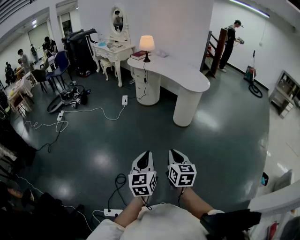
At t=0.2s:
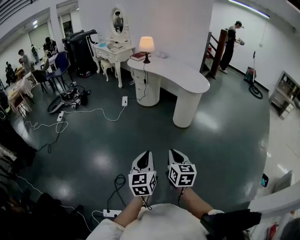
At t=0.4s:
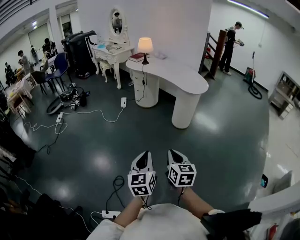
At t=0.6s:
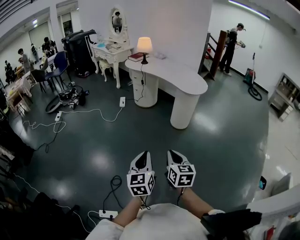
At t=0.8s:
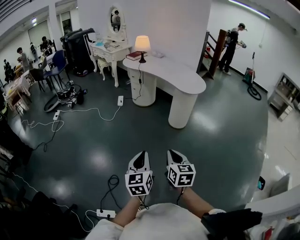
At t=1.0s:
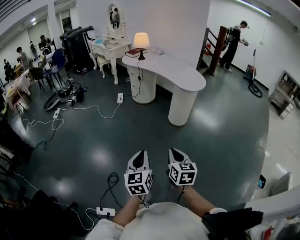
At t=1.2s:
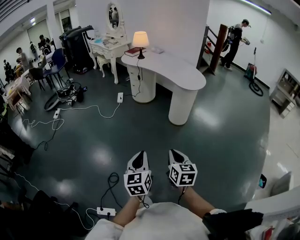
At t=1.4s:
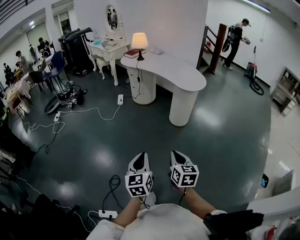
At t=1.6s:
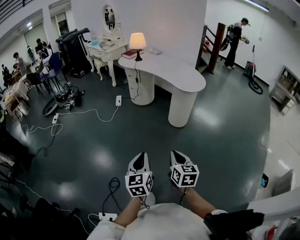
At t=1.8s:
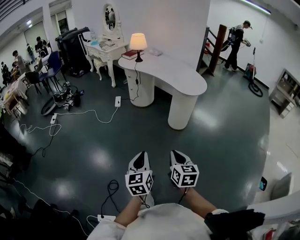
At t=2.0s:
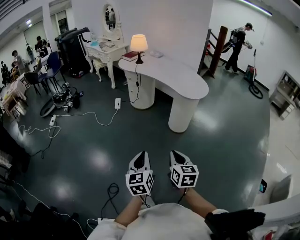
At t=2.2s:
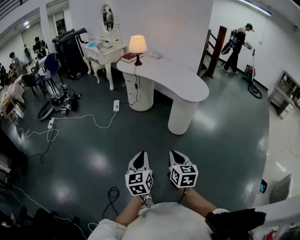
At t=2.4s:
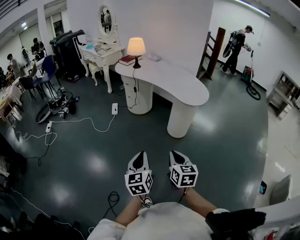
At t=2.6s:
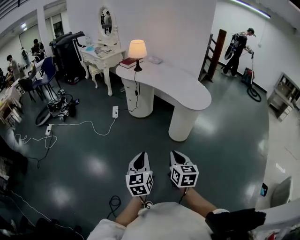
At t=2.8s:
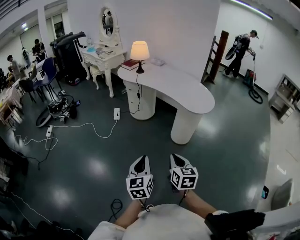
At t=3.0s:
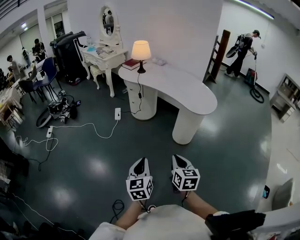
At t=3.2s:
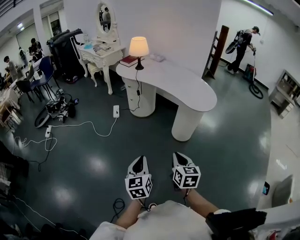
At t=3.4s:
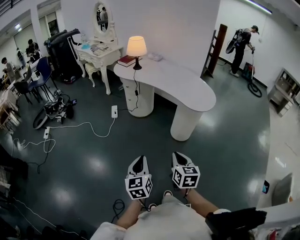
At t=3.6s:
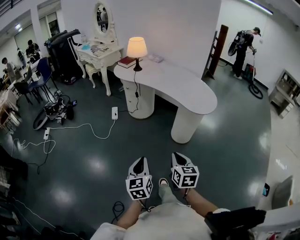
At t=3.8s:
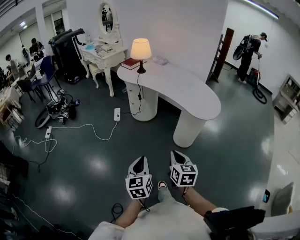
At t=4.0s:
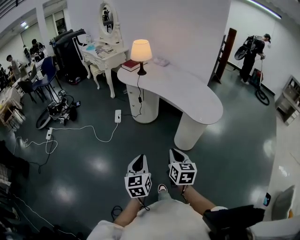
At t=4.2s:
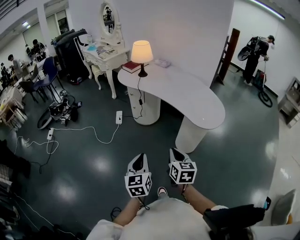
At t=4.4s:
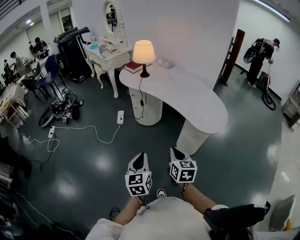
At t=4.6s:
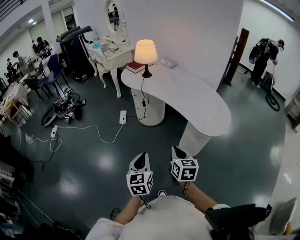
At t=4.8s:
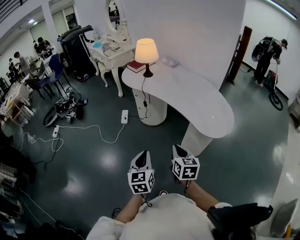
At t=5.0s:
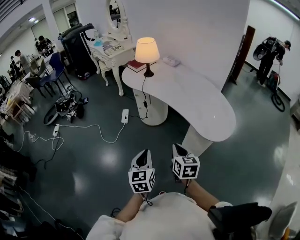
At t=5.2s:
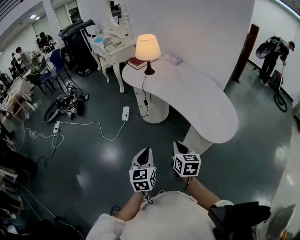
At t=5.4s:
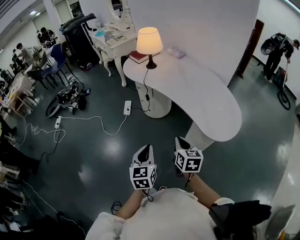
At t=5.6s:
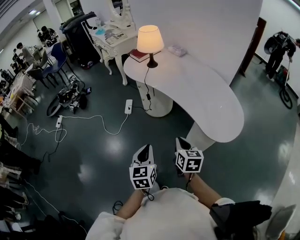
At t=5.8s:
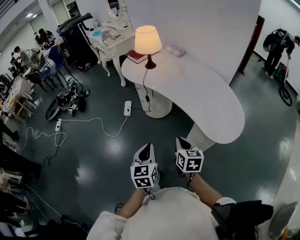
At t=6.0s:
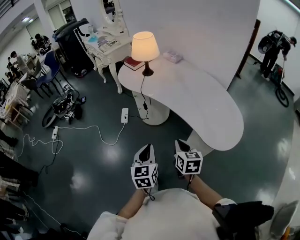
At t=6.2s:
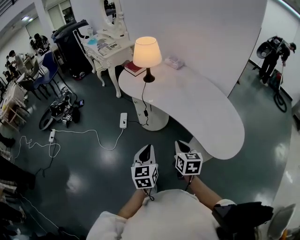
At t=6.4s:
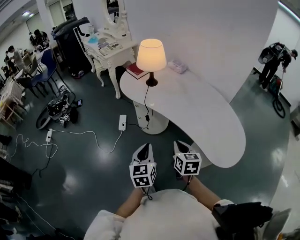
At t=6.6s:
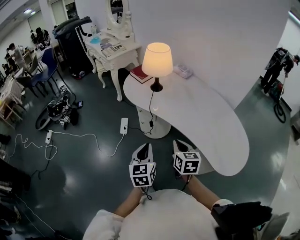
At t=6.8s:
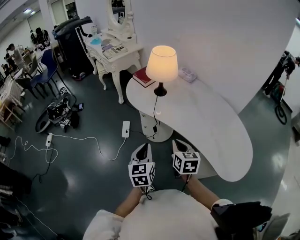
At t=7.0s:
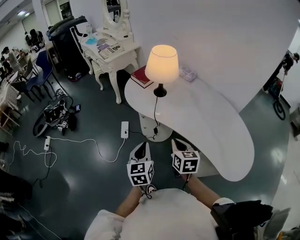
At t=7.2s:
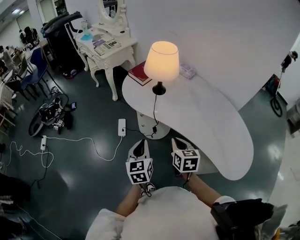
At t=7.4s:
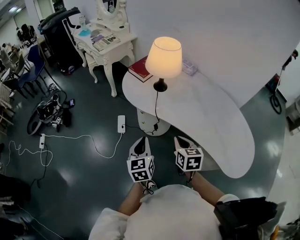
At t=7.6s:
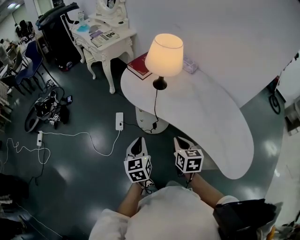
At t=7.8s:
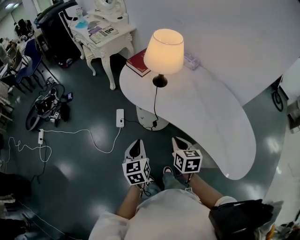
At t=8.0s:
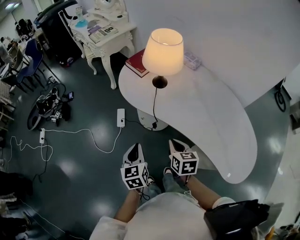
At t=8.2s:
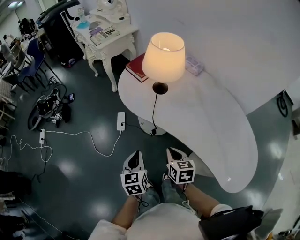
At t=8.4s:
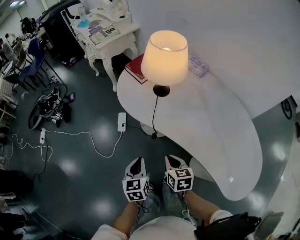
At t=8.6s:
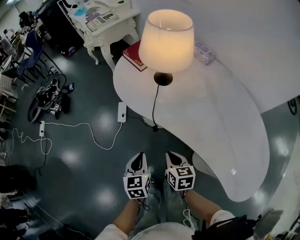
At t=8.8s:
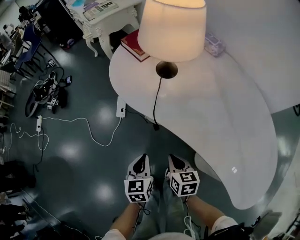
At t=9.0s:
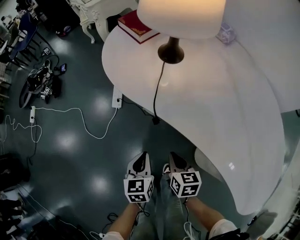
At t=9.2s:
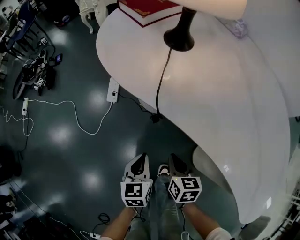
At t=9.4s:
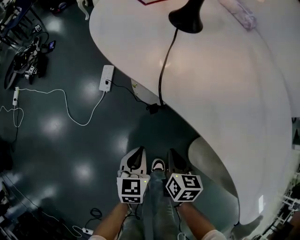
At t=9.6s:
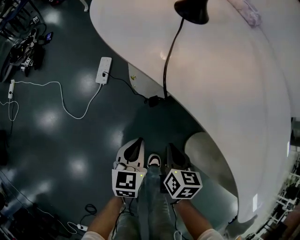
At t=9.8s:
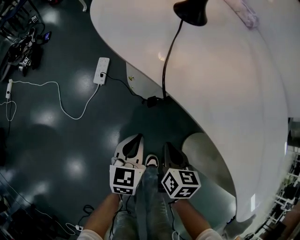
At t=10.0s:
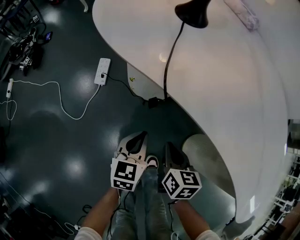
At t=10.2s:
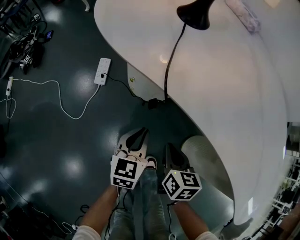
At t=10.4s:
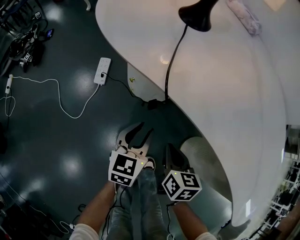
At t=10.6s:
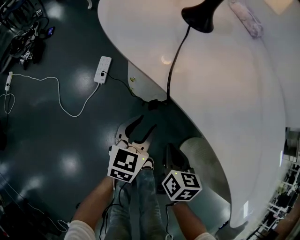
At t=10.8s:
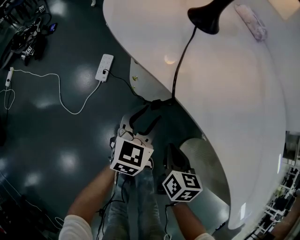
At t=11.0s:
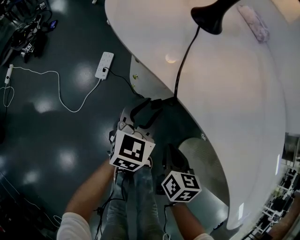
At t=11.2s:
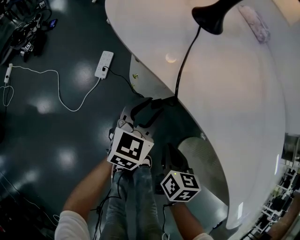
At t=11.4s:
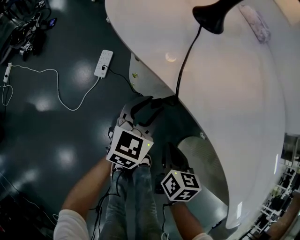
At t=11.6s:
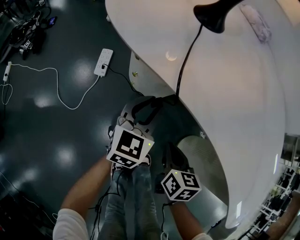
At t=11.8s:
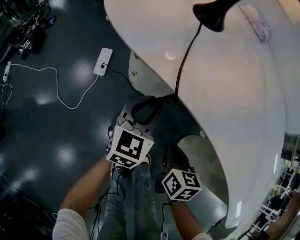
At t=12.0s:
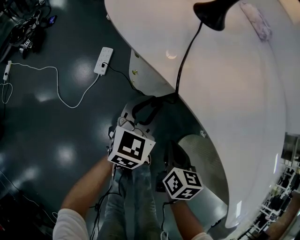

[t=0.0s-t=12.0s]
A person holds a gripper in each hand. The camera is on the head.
t=0.0s to t=1.6s: The right gripper travels to the right and forward by approximately 15 cm, while the left gripper shifts roughly 10 cm forward and to the right.
t=1.6s to t=3.0s: The two grippers go roughly 25 cm forward.
t=3.0s to t=4.4s: Both grippers move forward, about 20 cm.
t=4.4s to t=6.0s: Both grippers travel together forward, some 20 cm.
t=6.0s to t=7.6s: The grippers both shift forward and to the left by about 30 cm.
t=7.6s to t=9.0s: Both grippers travel together downward, approximately 25 cm.
t=9.0s to t=10.4s: The right gripper heads downward, covering about 5 cm. Meanwhile the left gripper is displaced downward and forward by some 10 cm, and opens.
t=10.4s to t=12.0s: The left gripper goes about 5 cm forward.

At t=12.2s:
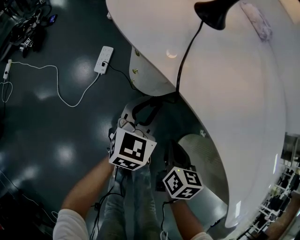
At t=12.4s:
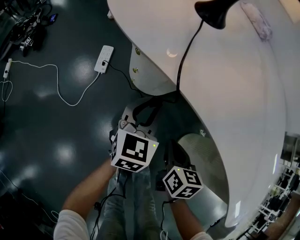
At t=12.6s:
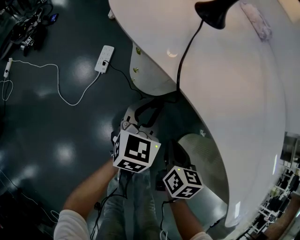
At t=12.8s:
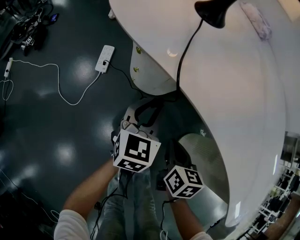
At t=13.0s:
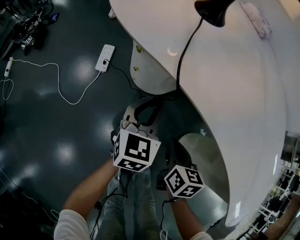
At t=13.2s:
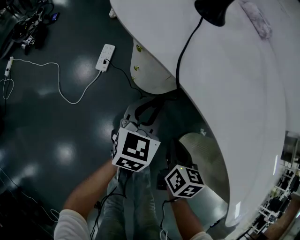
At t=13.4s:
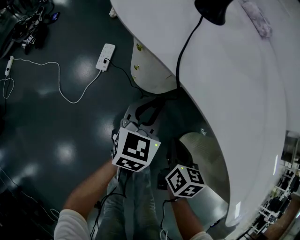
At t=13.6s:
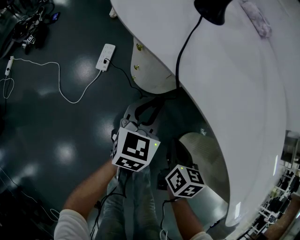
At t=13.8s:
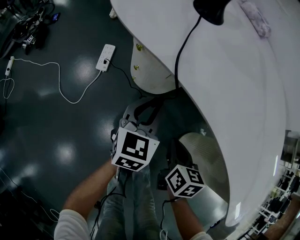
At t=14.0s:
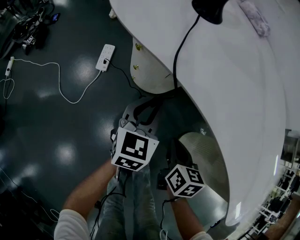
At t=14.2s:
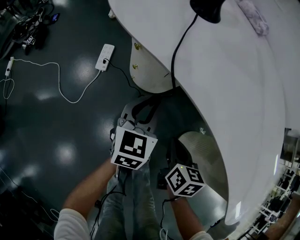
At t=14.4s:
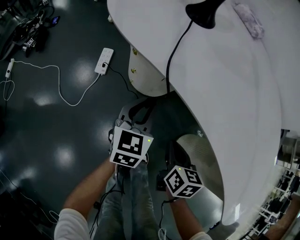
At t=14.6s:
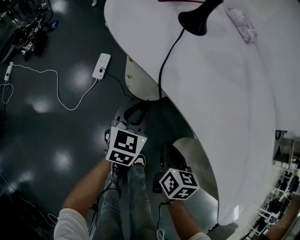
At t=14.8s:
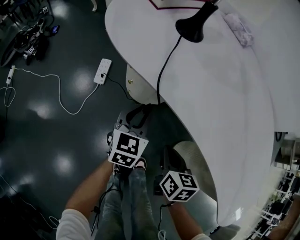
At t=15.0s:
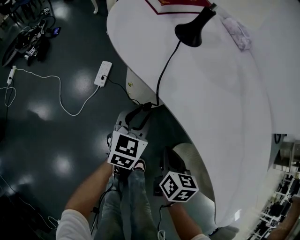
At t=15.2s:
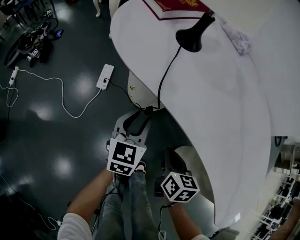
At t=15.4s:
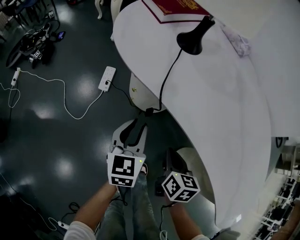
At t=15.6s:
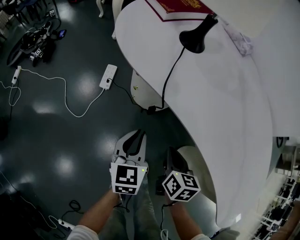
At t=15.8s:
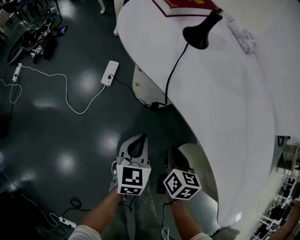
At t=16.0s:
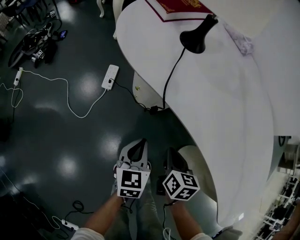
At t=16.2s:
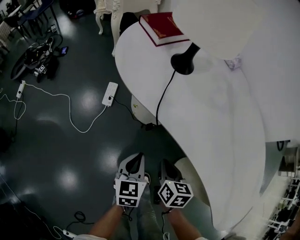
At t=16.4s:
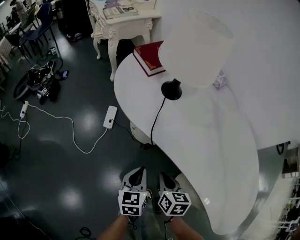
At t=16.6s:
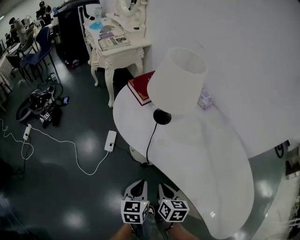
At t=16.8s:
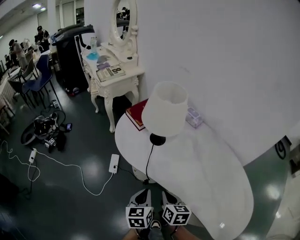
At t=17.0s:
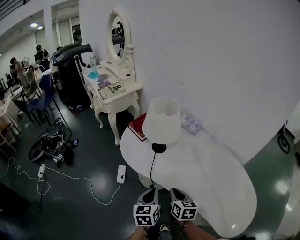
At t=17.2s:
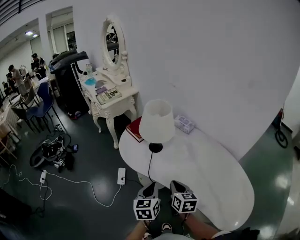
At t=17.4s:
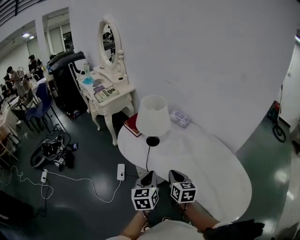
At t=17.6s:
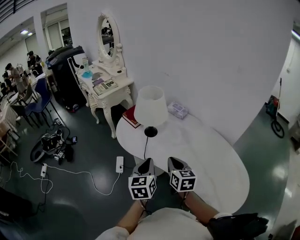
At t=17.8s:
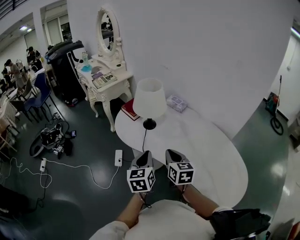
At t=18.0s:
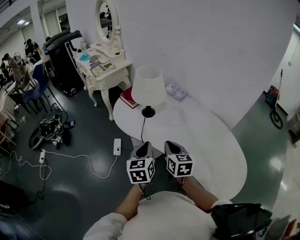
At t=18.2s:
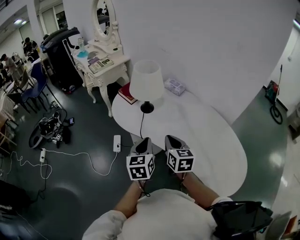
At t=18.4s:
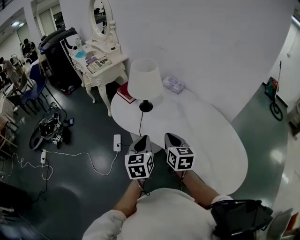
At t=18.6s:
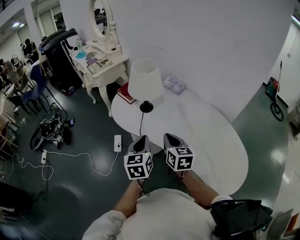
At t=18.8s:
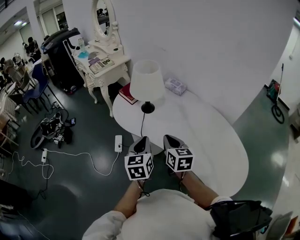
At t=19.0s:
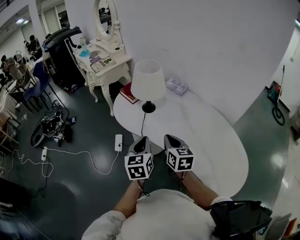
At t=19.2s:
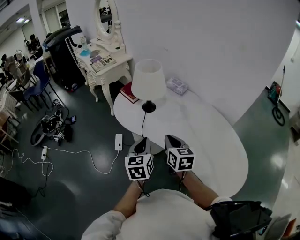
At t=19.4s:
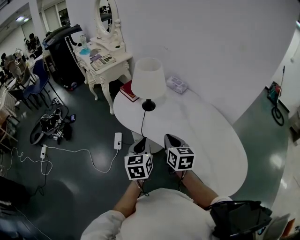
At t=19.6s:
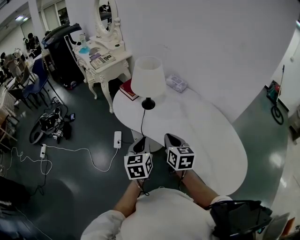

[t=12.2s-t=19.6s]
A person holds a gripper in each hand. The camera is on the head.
t=12.2s to t=13.6s: There are only small adjustments of the grippers.
t=13.6s to t=15.2s: Both grippers travel together upward, about 5 cm.
t=15.2s to t=16.6s: The left gripper goes about 15 cm upward and backward, and closes its fingers. Meanwhile the right gripper travels upward by about 10 cm.
t=16.6s to t=18.2s: The two grippers go some 25 cm upward. The right gripper turns by approximately 20 degrees.
t=18.2s to t=19.6s: The grippers make only small movements.

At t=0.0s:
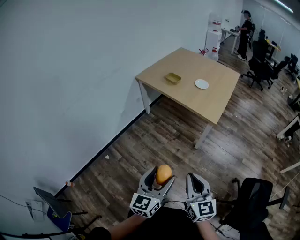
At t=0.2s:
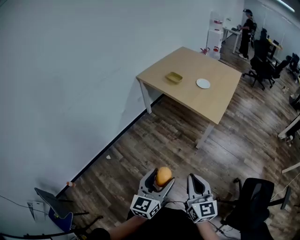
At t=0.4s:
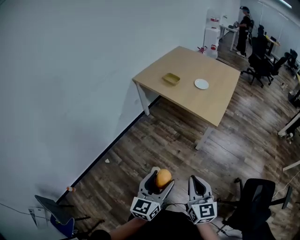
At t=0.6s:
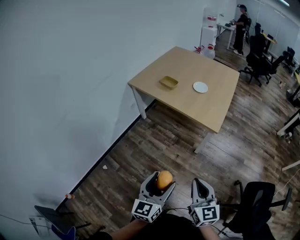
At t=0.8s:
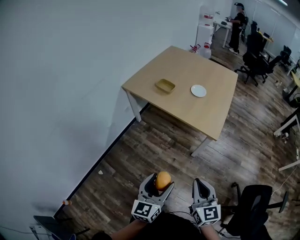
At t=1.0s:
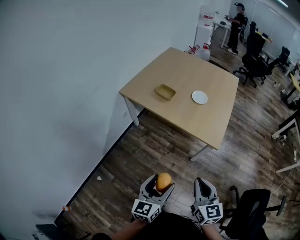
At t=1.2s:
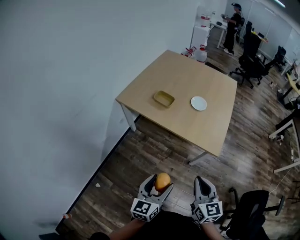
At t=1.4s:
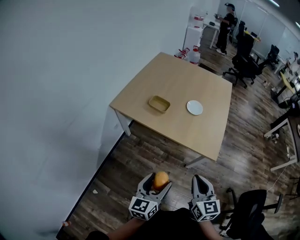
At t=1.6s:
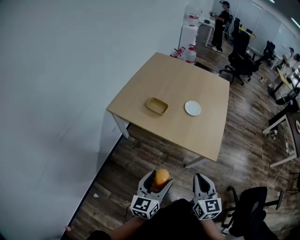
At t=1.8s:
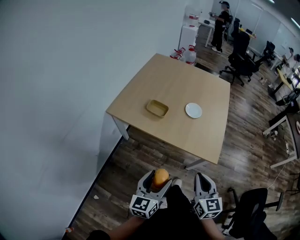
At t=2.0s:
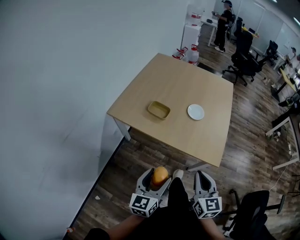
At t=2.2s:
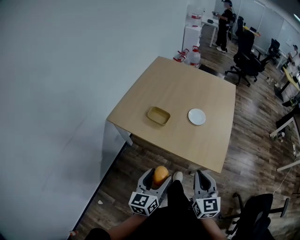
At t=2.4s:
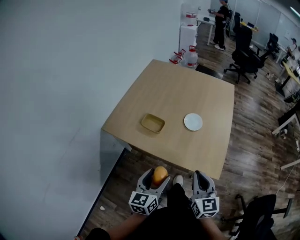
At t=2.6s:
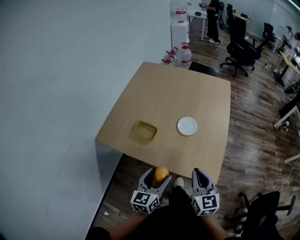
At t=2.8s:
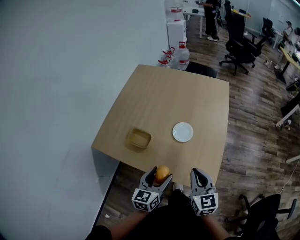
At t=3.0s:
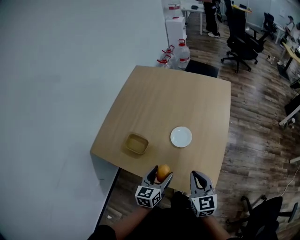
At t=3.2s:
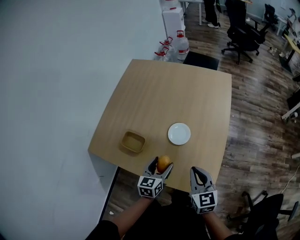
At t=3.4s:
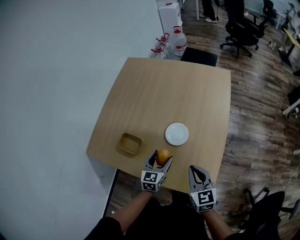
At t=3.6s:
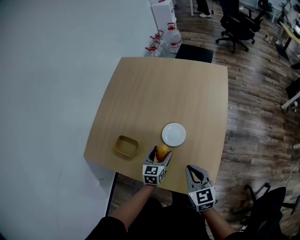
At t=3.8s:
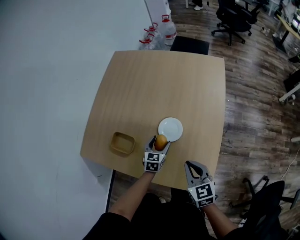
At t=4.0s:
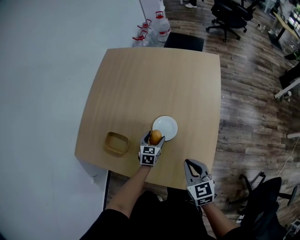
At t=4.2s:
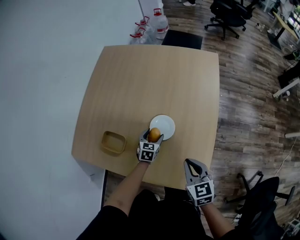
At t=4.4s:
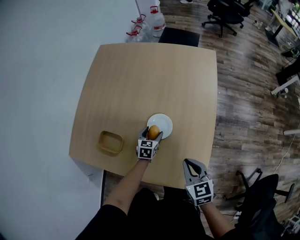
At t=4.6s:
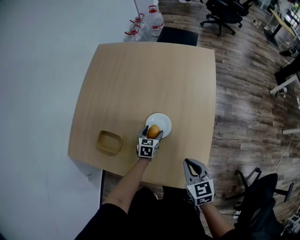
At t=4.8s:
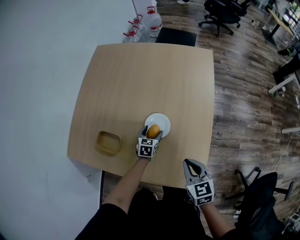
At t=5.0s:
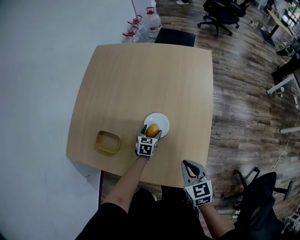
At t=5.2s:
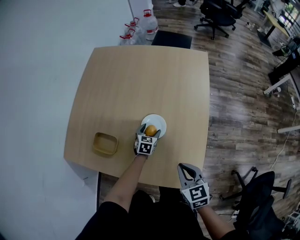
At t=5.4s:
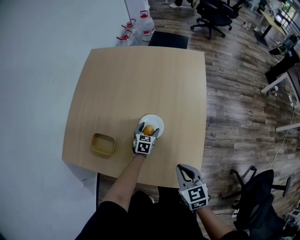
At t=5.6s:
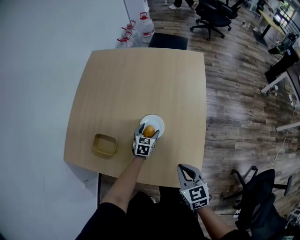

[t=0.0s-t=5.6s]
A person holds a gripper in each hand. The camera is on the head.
t=0.0s to t=1.4s: The grippers both shift forward by roughly 35 cm.
t=1.4s to t=2.8s: The two grippers go roughly 30 cm forward.
t=2.8s to t=4.2s: The right gripper is displaced forward, downward and to the right by about 15 cm. Meanwhile the left gripper is displaced forward and downward by roughly 35 cm, and turns by some 30 degrees.
t=4.2s to t=5.6s: The grippers move only a little.
